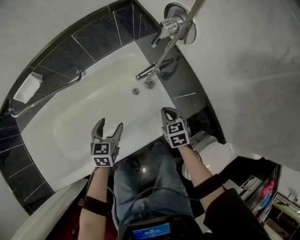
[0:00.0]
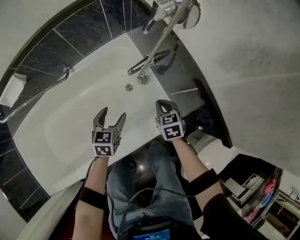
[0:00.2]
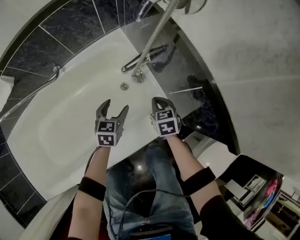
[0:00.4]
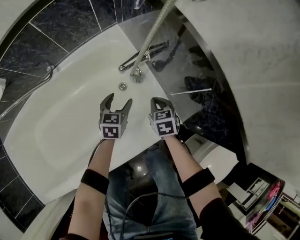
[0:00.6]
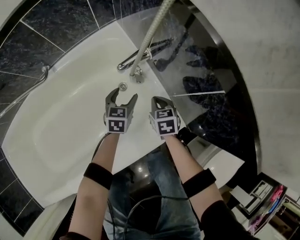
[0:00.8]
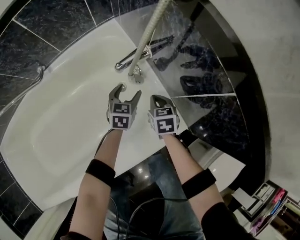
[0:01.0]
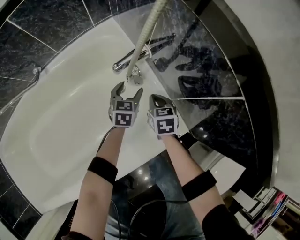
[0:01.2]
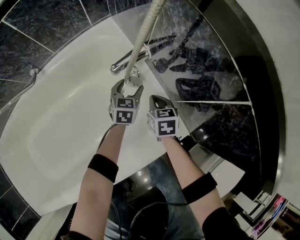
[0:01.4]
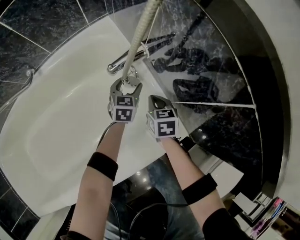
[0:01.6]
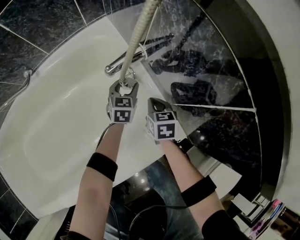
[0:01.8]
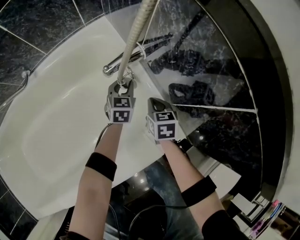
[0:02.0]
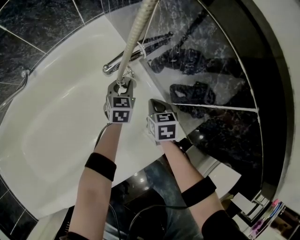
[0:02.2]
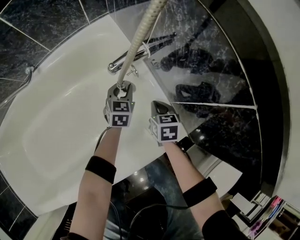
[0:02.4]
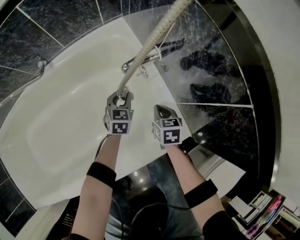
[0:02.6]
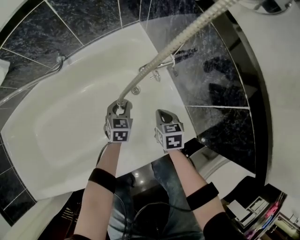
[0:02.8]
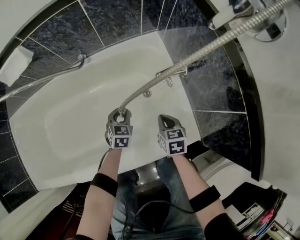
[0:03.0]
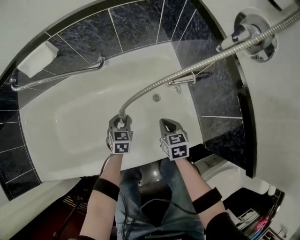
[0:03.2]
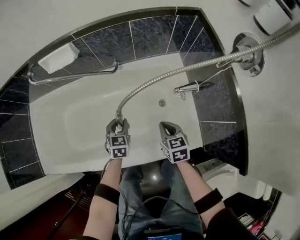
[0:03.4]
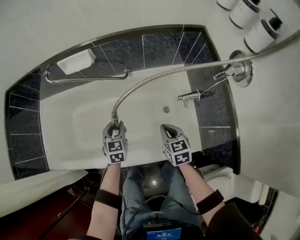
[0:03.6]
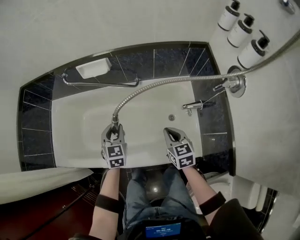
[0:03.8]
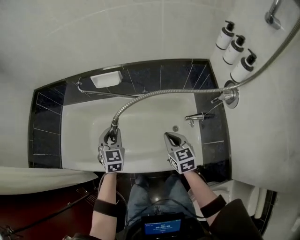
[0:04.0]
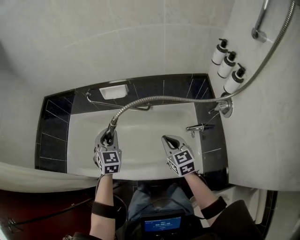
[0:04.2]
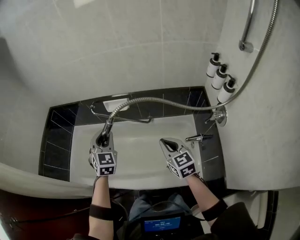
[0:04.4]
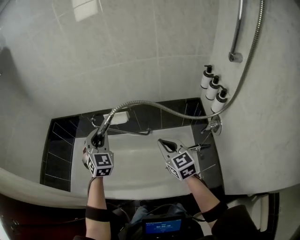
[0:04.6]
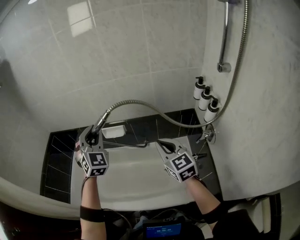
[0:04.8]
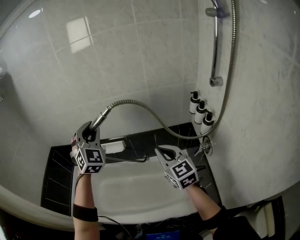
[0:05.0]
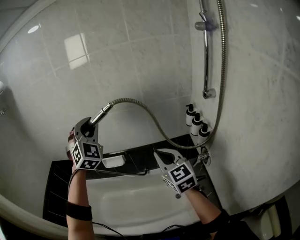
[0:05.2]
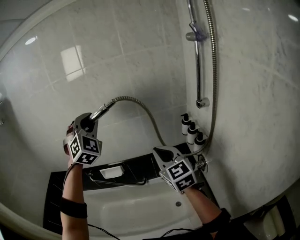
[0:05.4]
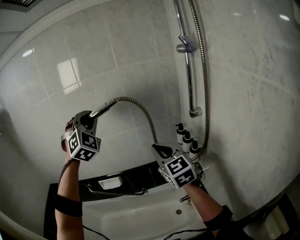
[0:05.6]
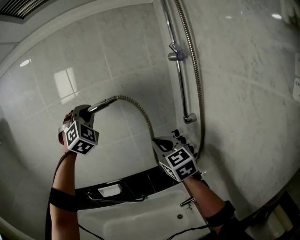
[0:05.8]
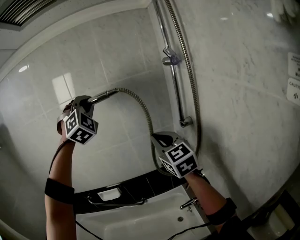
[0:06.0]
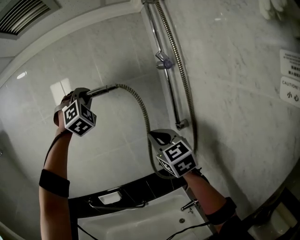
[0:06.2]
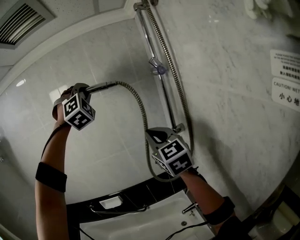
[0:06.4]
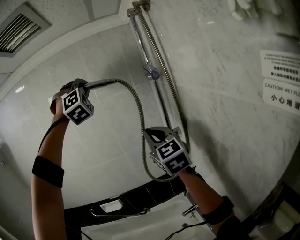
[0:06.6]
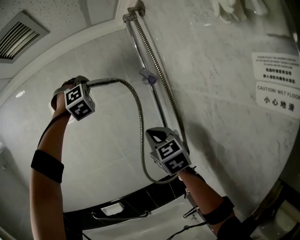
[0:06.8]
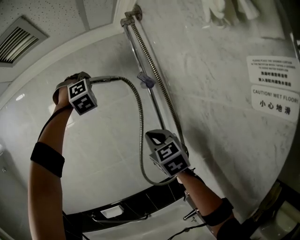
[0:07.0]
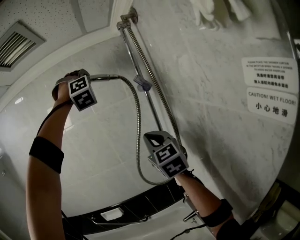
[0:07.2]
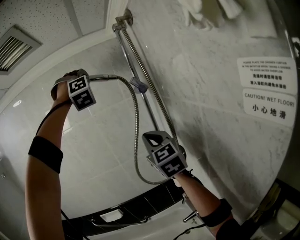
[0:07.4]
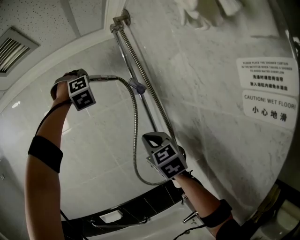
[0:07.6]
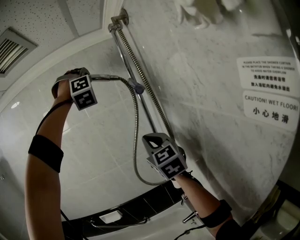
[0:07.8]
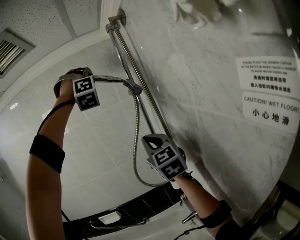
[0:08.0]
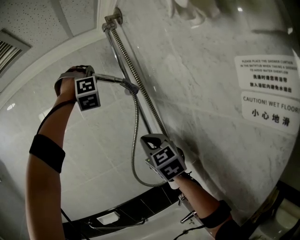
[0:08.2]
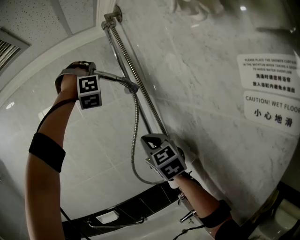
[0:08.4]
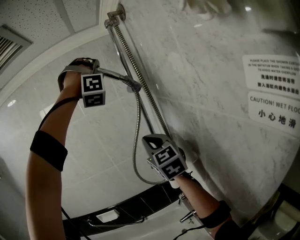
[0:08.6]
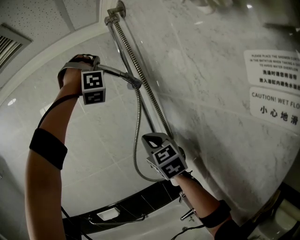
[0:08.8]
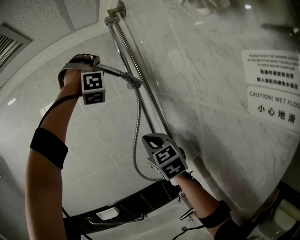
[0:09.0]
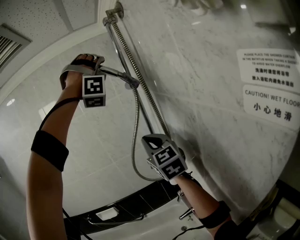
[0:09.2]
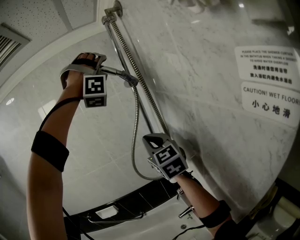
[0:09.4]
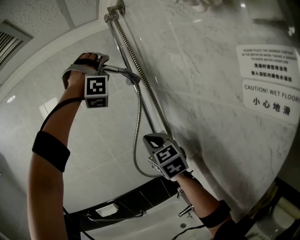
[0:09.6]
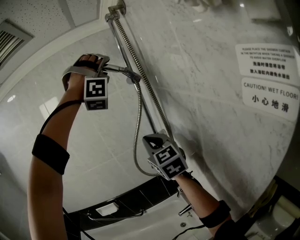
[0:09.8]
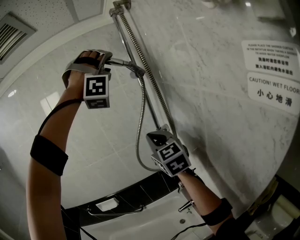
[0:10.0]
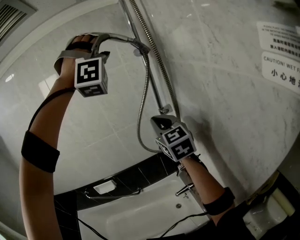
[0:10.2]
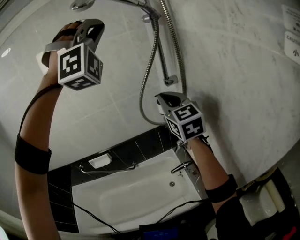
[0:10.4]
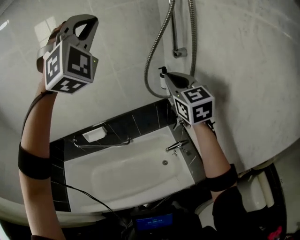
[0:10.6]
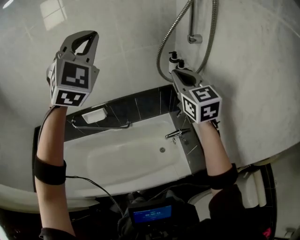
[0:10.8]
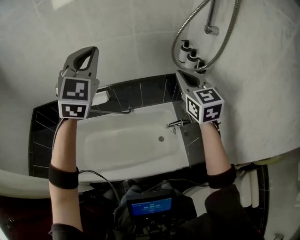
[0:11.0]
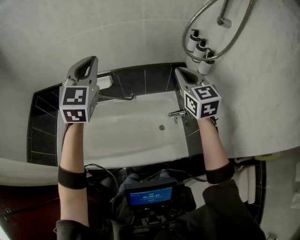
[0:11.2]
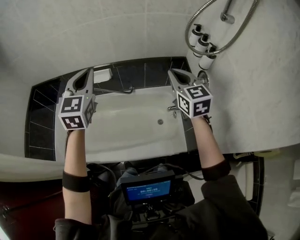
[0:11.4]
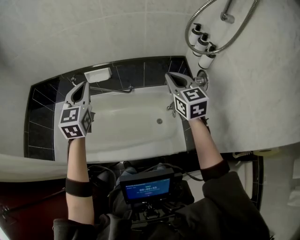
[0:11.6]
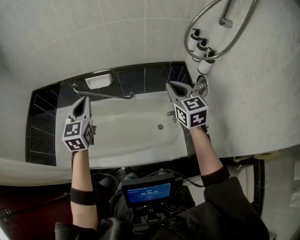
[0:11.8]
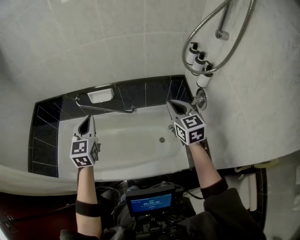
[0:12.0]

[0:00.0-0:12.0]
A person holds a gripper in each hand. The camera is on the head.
0:00.0 to 0:01.6: The right gripper shifts approximately 30 cm downward, while the left gripper heads downward, forward and to the right, covering about 50 cm.
0:01.6 to 0:03.0: The left gripper shifts approximately 25 cm to the left and backward, turns by some 20 degrees, and closes up. The right gripper is displaced to the left, upward and backward by some 20 cm.
0:03.0 to 0:04.4: The grippers both shift upward by about 60 cm. The left gripper swivels some 40 degrees. The right gripper swivels about 50 degrees.
0:04.4 to 0:06.0: The two grippers go approximately 50 cm upward and to the right. The right gripper changes its angle by approximately 30 degrees. The left gripper rotates around the line of its fingers by approximately 50 degrees, clockwise from behind.
0:06.0 to 0:07.6: The left gripper moves upward and to the right, roughly 25 cm, and changes its angle by about 30 degrees, while the right gripper shifts about 15 cm upward and to the right.
0:07.6 to 0:09.0: The left gripper is displaced to the right by roughly 10 cm, and turns by some 20 degrees.
0:09.0 to 0:10.4: The left gripper moves downward, backward and to the left, some 20 cm, changes its angle by approximately 30 degrees, and opens and closes again; the right gripper moves downward, approximately 10 cm.
0:10.4 to 0:12.0: The right gripper travels downward and to the left by roughly 30 cm, and swivels some 20 degrees. Meanwhile the left gripper goes about 60 cm downward and to the left, and twists about 100 degrees counterclockwise, seen from behind.

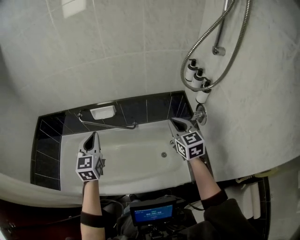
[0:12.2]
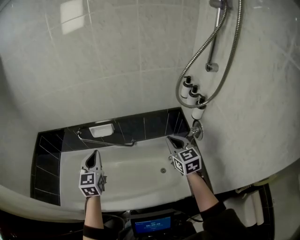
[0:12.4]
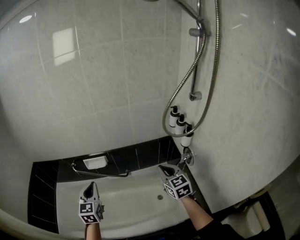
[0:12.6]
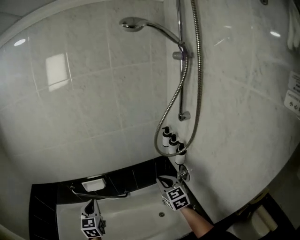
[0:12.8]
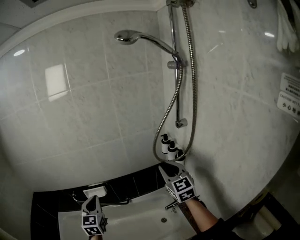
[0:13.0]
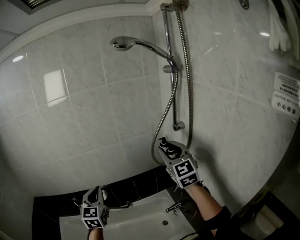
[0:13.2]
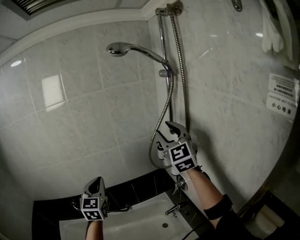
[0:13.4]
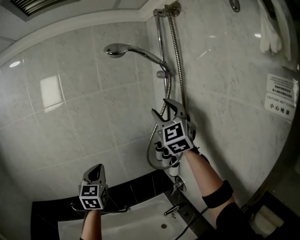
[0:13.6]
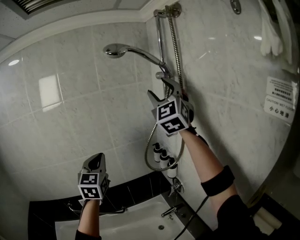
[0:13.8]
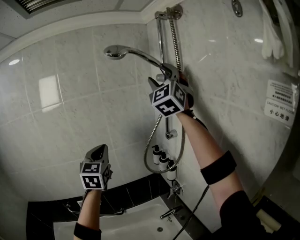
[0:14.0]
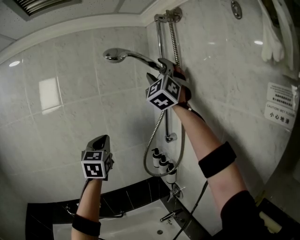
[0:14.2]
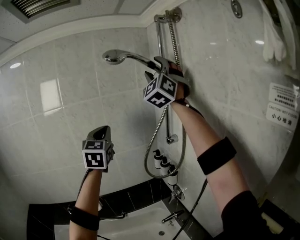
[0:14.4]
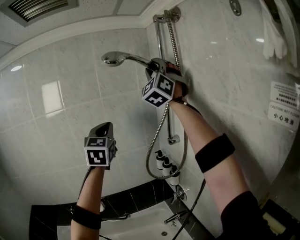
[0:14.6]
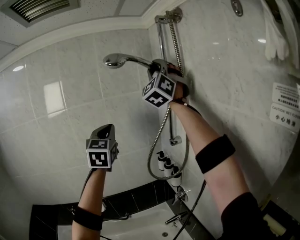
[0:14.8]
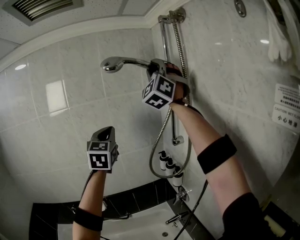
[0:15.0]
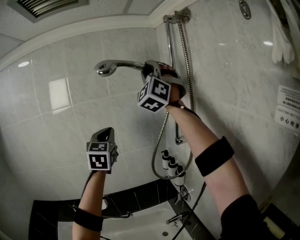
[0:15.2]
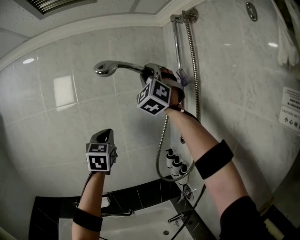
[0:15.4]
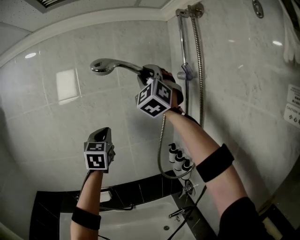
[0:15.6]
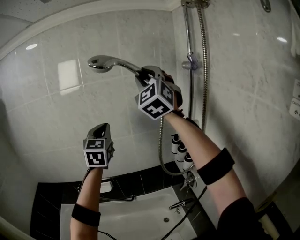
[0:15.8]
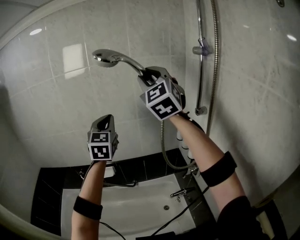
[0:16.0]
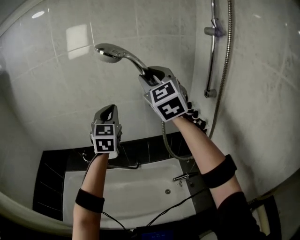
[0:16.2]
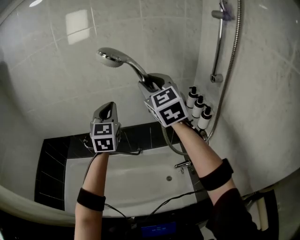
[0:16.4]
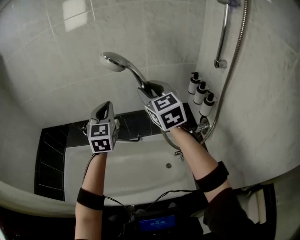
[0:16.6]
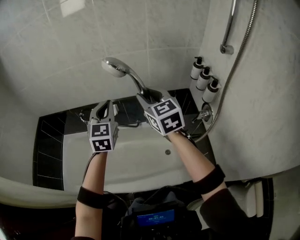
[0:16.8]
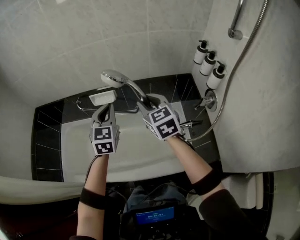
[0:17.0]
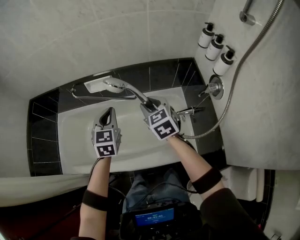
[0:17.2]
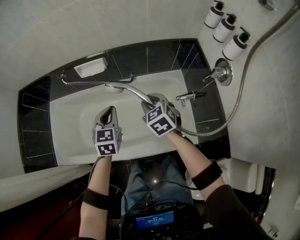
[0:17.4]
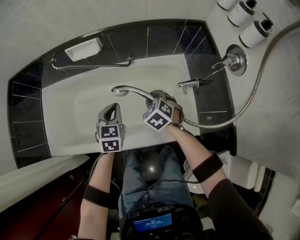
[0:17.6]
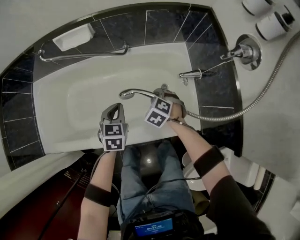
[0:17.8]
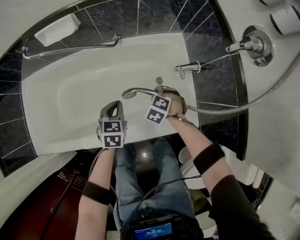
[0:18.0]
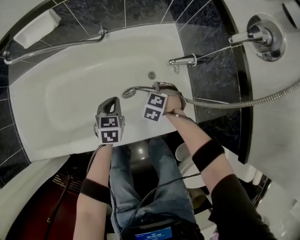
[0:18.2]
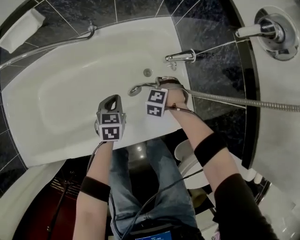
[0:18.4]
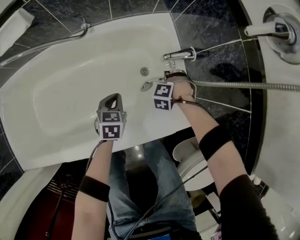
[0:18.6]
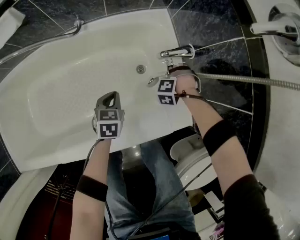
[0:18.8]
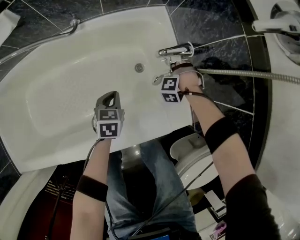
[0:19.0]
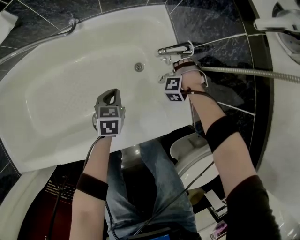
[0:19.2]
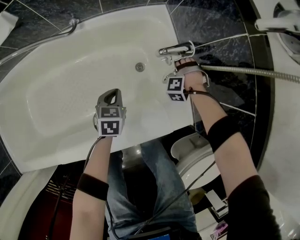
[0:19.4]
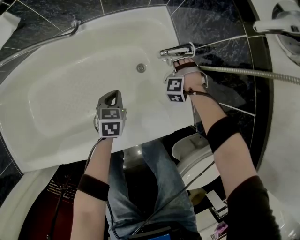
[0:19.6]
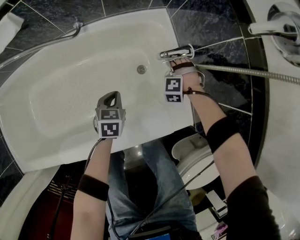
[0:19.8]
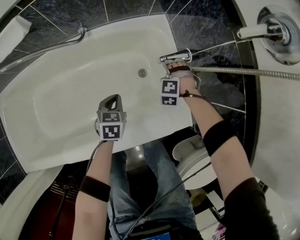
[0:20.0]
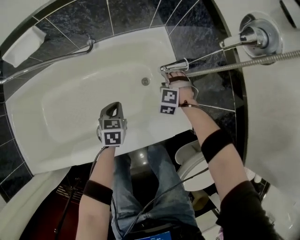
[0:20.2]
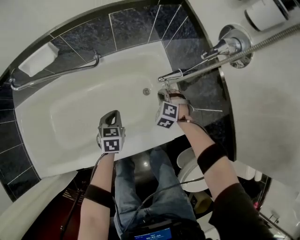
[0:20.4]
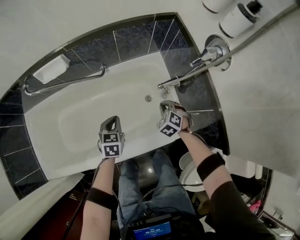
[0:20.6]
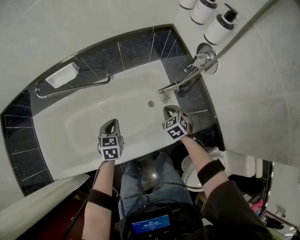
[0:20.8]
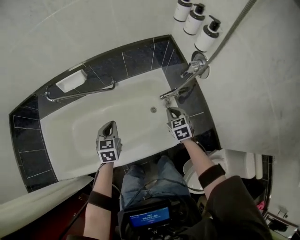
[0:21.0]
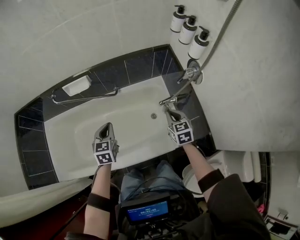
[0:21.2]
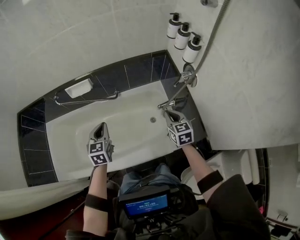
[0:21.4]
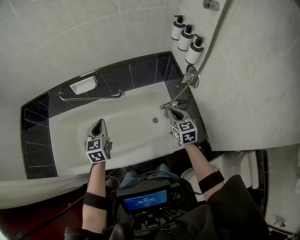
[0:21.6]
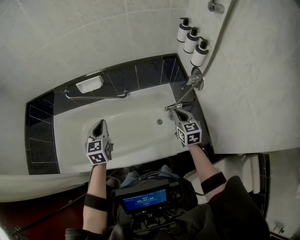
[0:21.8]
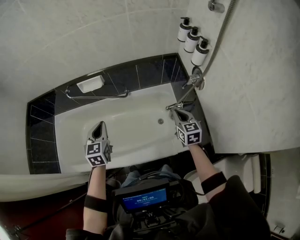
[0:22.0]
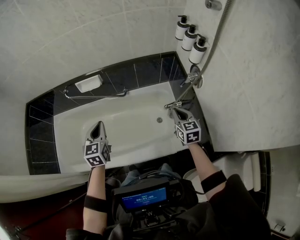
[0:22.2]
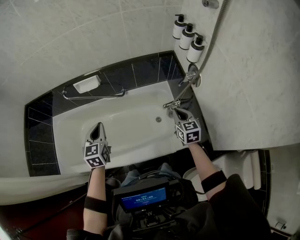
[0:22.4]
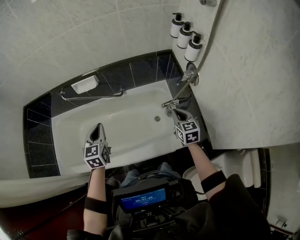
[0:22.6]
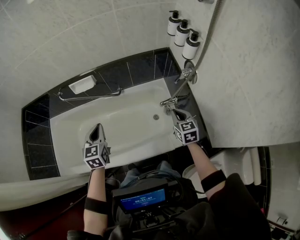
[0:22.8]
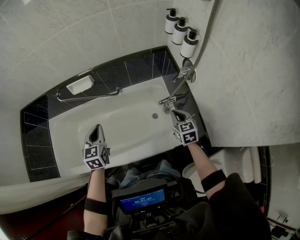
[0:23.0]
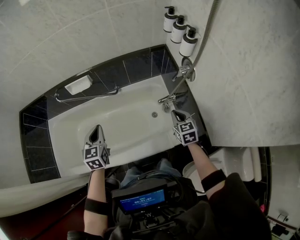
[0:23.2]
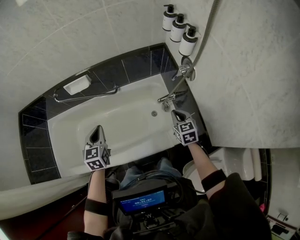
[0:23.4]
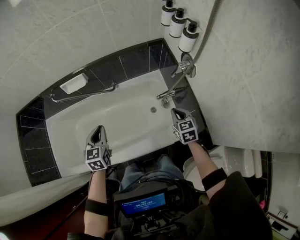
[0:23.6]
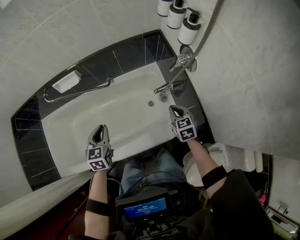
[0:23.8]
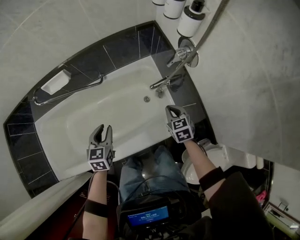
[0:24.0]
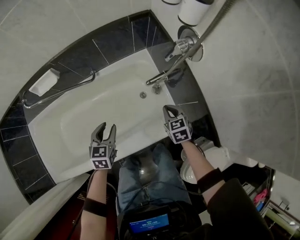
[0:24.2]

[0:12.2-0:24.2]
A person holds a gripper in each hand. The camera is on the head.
0:12.2 to 0:13.8: The left gripper goes approximately 35 cm upward, to the right and forward, and turns by roughly 30 degrees, while the right gripper moves upward, approximately 50 cm, angles its fingers upward, by some 40 degrees, and opens.
0:13.8 to 0:15.2: The left gripper heads upward and forward, covering some 15 cm. Meanwhile the right gripper travels upward and to the left by about 10 cm, swivels some 30 degrees, and closes up.
0:15.2 to 0:16.6: The right gripper travels downward and to the left by roughly 50 cm, and tips its fingers downward by approximately 30 degrees; the left gripper travels downward and to the left by some 30 cm.
0:16.6 to 0:18.2: The two grippers go roughly 80 cm downward. The right gripper tips its fingers downward by about 70 degrees. The left gripper tips its fingers downward by roughly 40 degrees.
0:18.2 to 0:19.8: The left gripper travels downward by some 10 cm, while the right gripper moves about 20 cm, changes its angle by about 30 degrees, and opens its fingers.
0:19.8 to 0:21.2: Both grippers move upward, approximately 50 cm. The right gripper twists about 90 degrees clockwise, seen from behind, and closes its fingers. The left gripper swivels about 20 degrees.
0:21.2 to 0:22.6: The left gripper travels upward by approximately 10 cm, while the right gripper heads upward, covering about 5 cm.
0:22.6 to 0:24.2: The right gripper moves downward, approximately 20 cm, while the left gripper is displaced downward and to the right by some 25 cm, swivels some 30 degrees, and opens its fingers.
